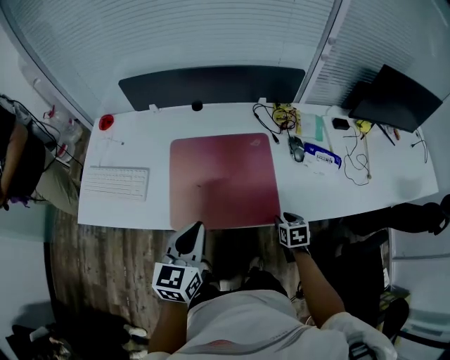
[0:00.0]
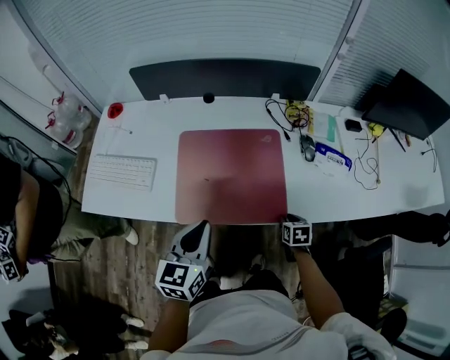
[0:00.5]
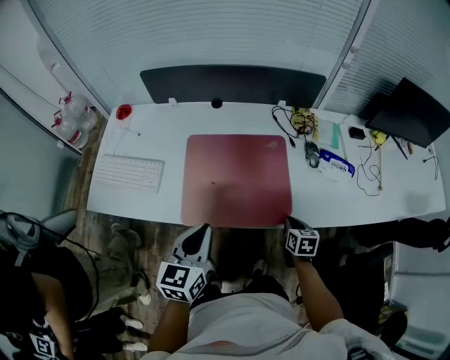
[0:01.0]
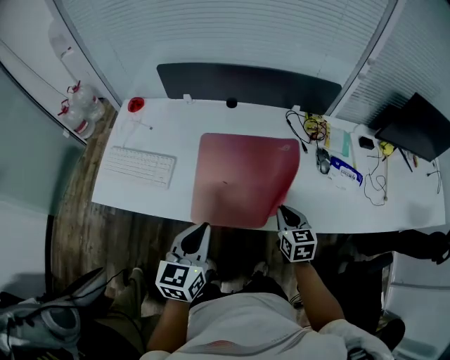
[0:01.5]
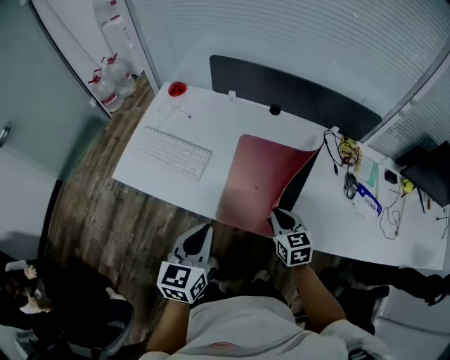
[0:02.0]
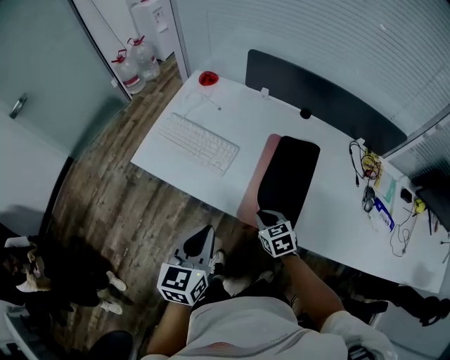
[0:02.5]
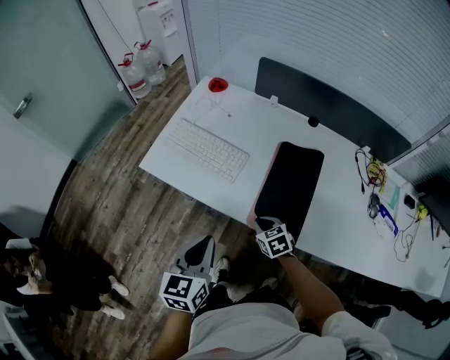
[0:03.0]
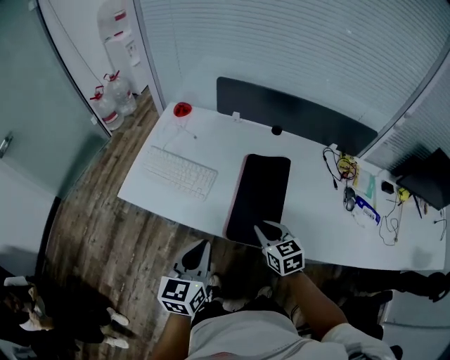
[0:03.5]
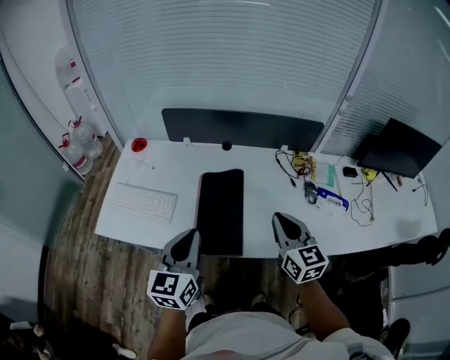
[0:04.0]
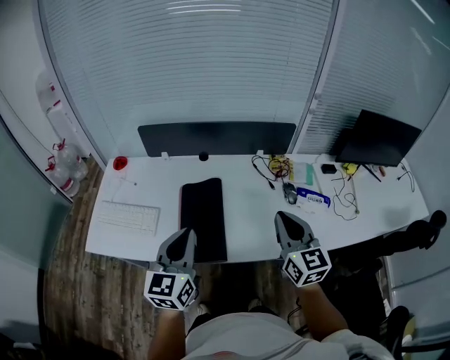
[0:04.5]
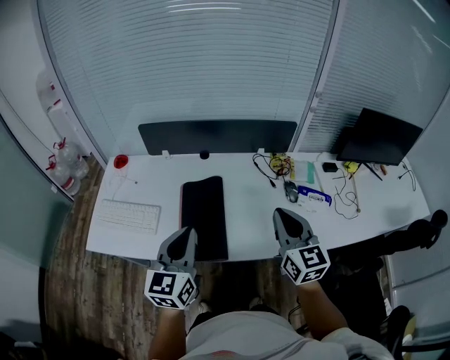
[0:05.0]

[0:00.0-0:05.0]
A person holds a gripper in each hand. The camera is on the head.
0:00.0 to 0:02.5: The right gripper reaches roughly 10 cm upward, then returns, turns by approximately 50 degrees, and closes, while the left gripper ends up roughly 20 cm from where it was, and rotates roughly 30 degrees.
0:02.5 to 0:05.0: The right gripper shifts approximately 30 cm upward, and points its fingers about 40 degrees further upward, while the left gripper moves about 20 cm, and turns by some 30 degrees.

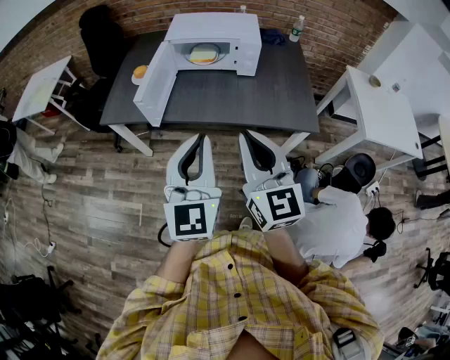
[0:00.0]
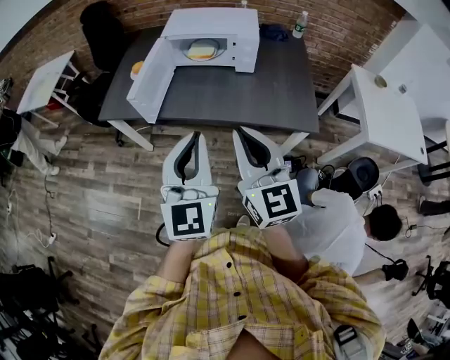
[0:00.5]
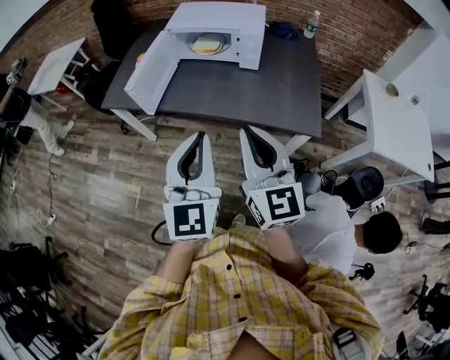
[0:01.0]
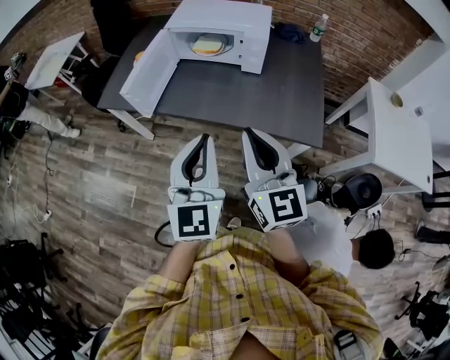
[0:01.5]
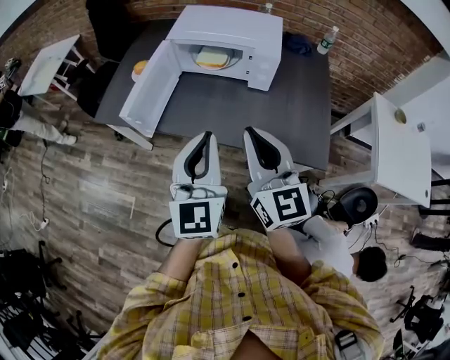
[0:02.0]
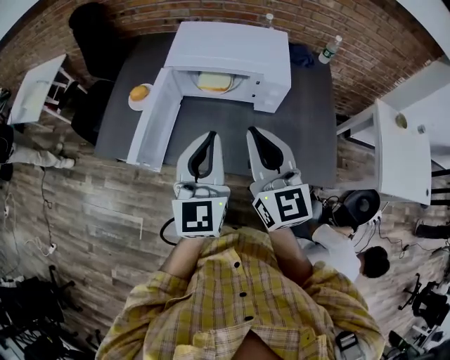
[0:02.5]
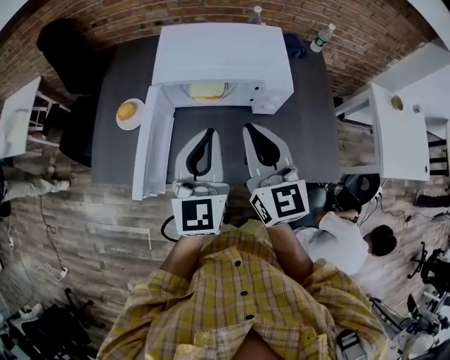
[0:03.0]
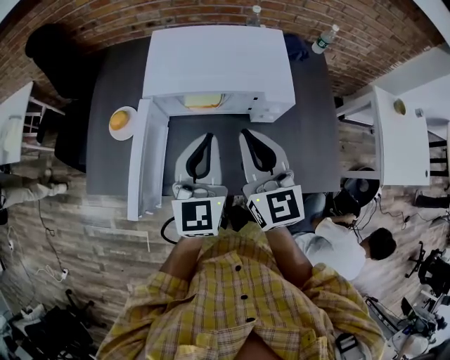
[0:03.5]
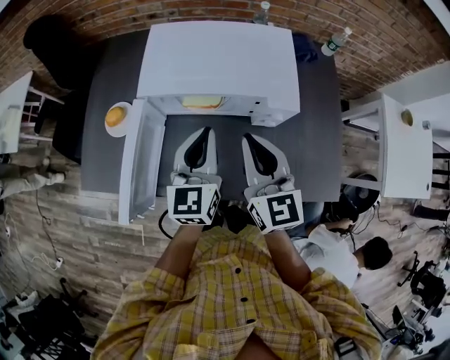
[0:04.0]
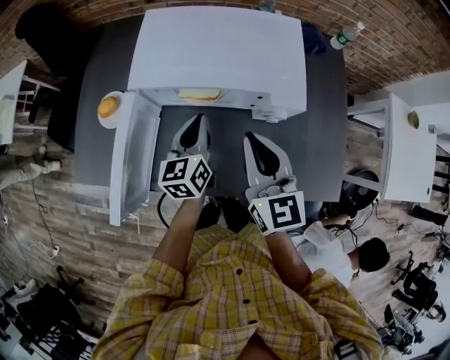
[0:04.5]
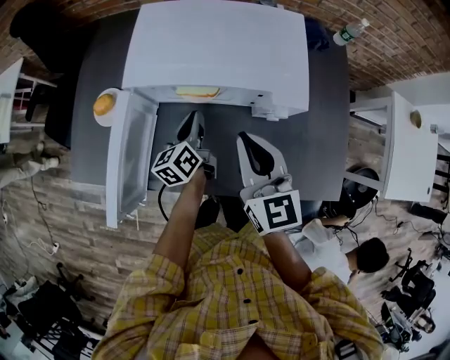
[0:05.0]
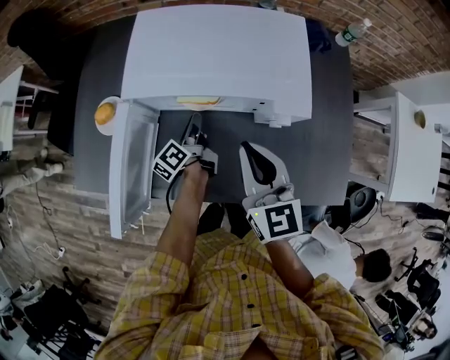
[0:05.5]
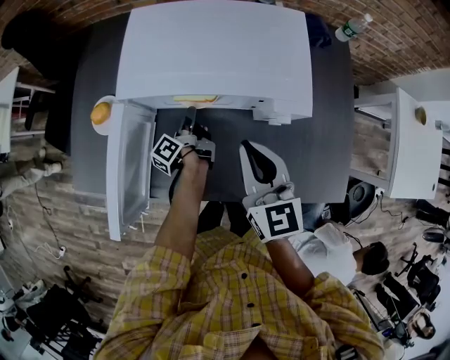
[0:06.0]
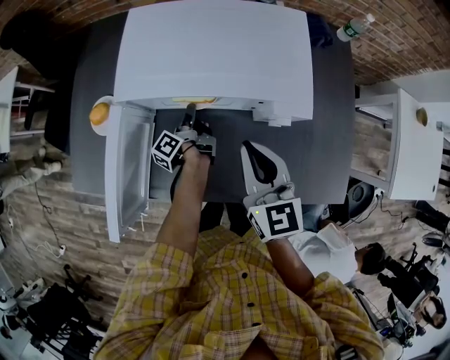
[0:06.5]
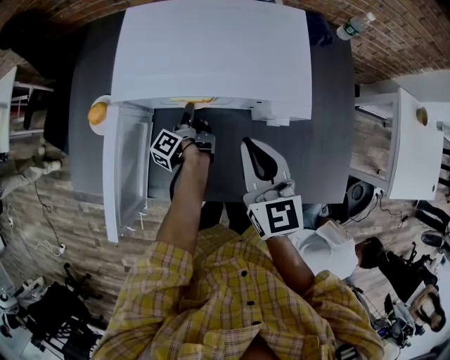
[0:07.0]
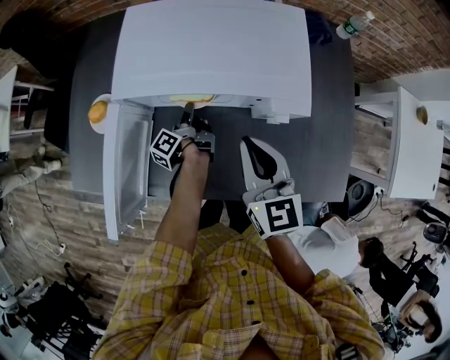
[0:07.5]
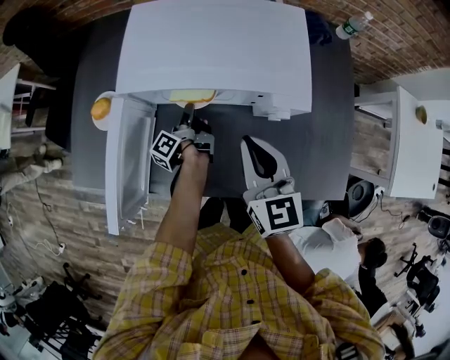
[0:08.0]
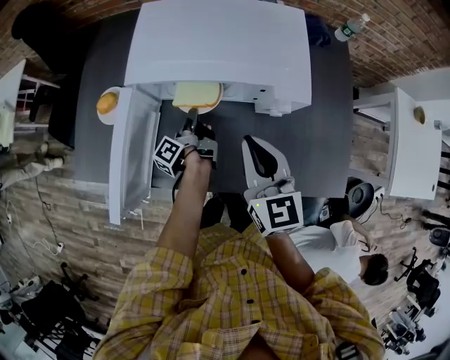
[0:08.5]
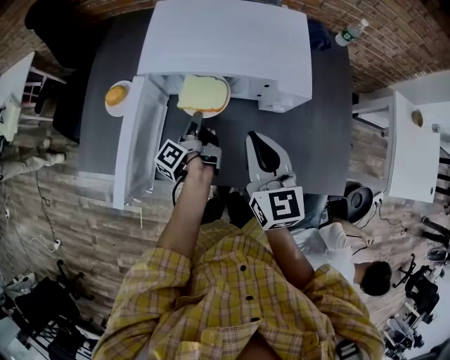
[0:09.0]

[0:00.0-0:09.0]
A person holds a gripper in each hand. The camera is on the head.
0:00.0 to 0:02.0: Both grippers travel together forward and to the right, about 20 cm.
0:02.0 to 0:04.5: The right gripper heads forward, covering about 30 cm. Meanwhile the left gripper shifts roughly 40 cm forward and downward, and swivels roughly 30 degrees.
0:04.5 to 0:07.0: The left gripper travels downward and forward by approximately 20 cm, and twists approximately 70 degrees counterclockwise, seen from behind, while the right gripper moves about 5 cm.
0:07.0 to 0:09.0: The left gripper moves backward and upward, approximately 10 cm; the right gripper travels backward by roughly 5 cm.

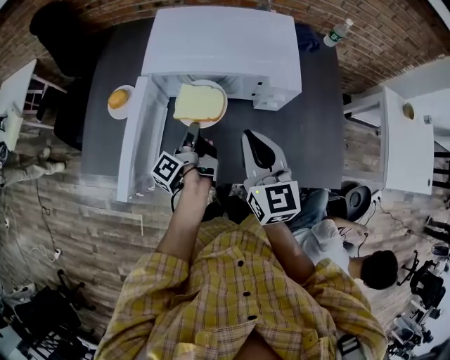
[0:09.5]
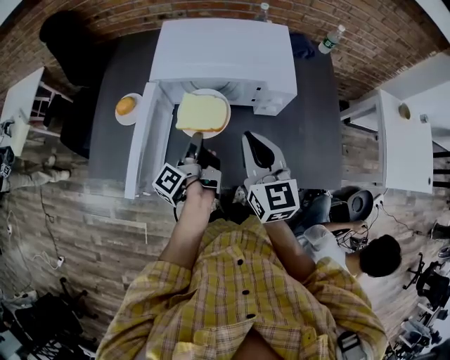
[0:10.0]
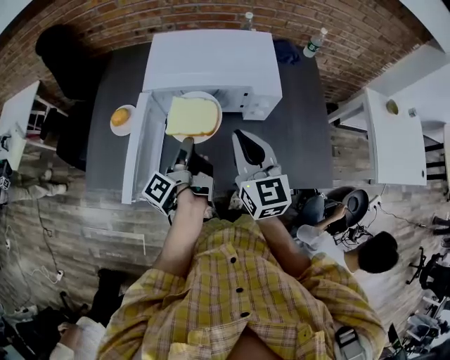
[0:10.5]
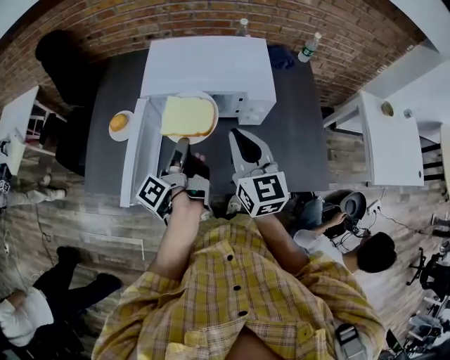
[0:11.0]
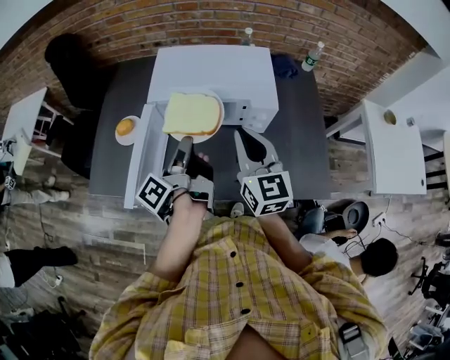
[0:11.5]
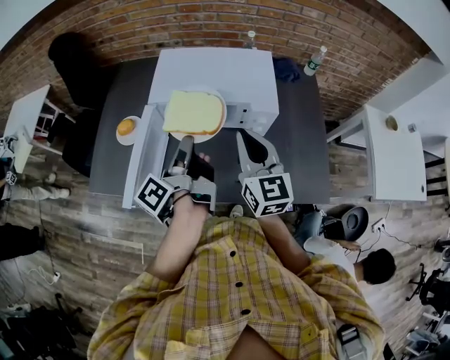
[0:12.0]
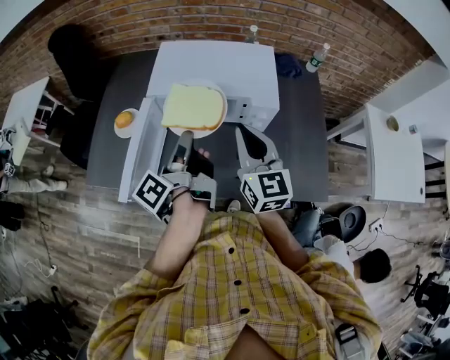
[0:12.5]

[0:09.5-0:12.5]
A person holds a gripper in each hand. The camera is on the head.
0:09.5 to 0:11.0: The right gripper travels upward by roughly 5 cm, while the left gripper is displaced upward by some 15 cm.
0:11.0 to 0:12.5: The left gripper shifts approximately 5 cm upward.

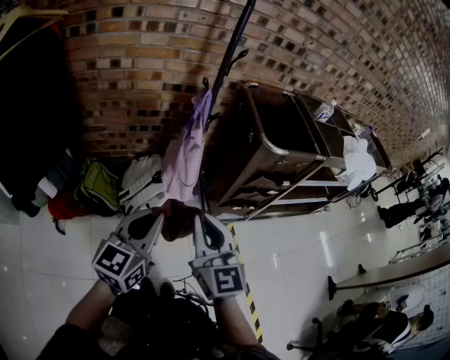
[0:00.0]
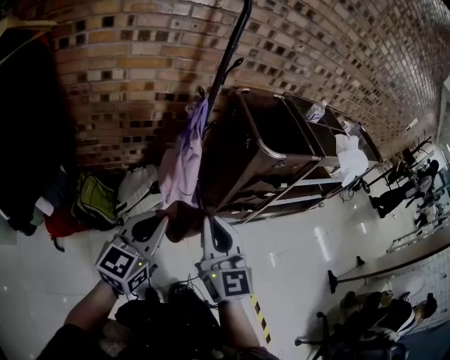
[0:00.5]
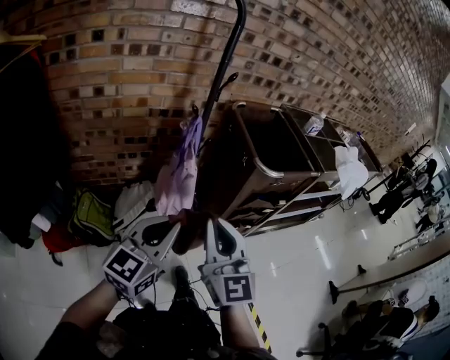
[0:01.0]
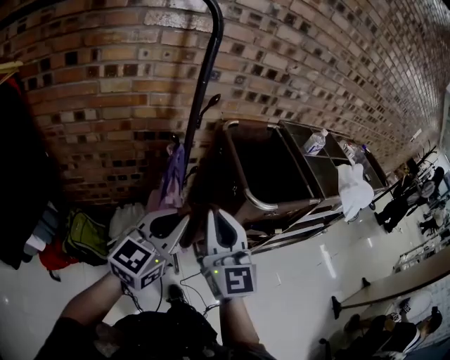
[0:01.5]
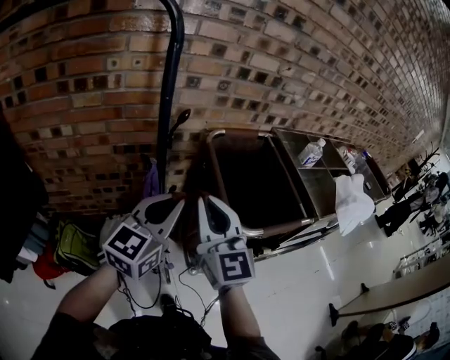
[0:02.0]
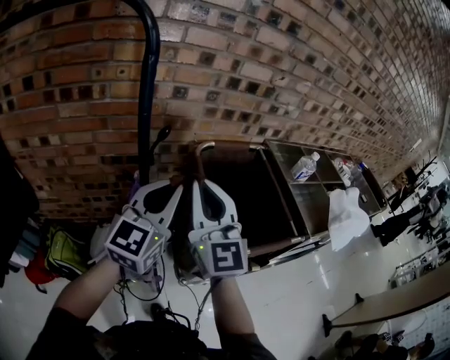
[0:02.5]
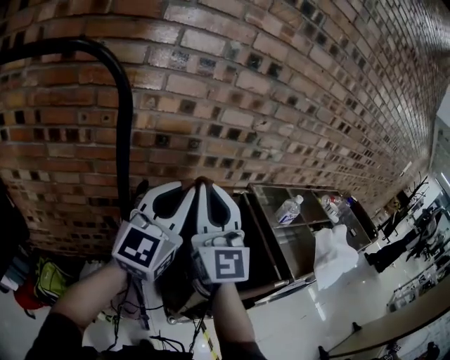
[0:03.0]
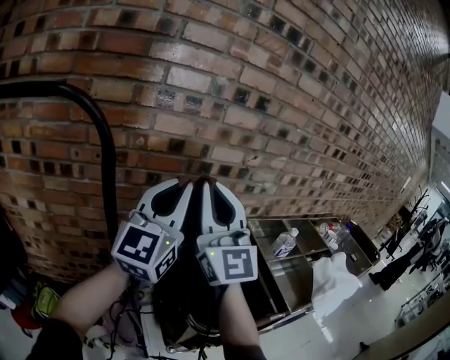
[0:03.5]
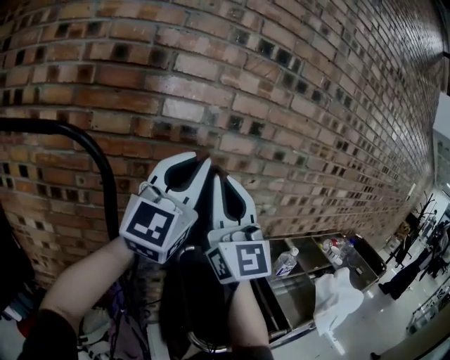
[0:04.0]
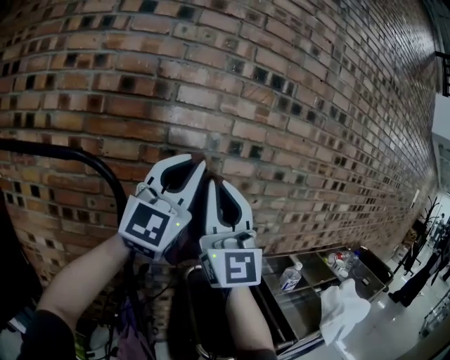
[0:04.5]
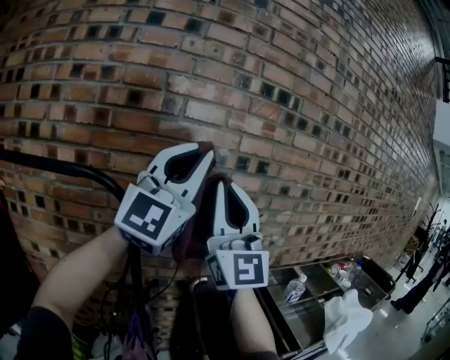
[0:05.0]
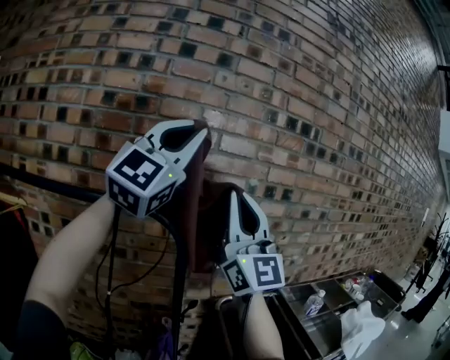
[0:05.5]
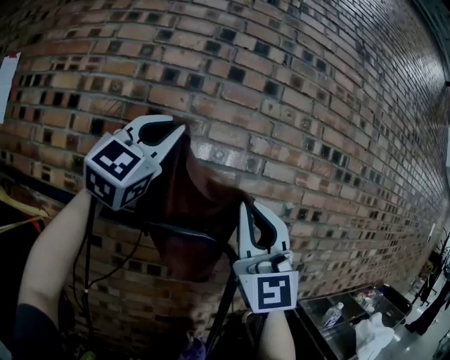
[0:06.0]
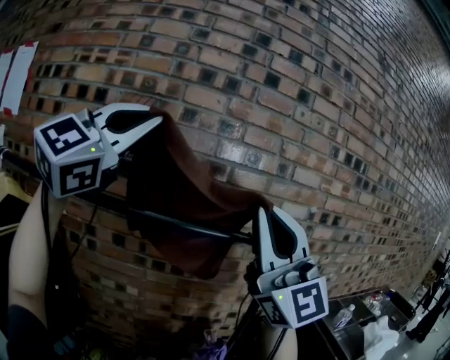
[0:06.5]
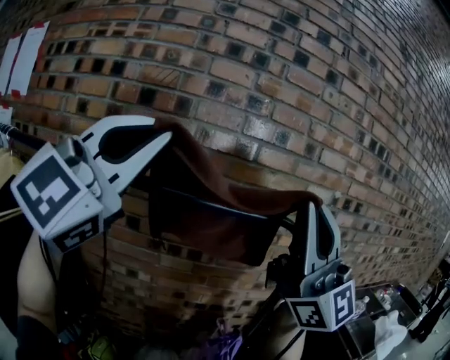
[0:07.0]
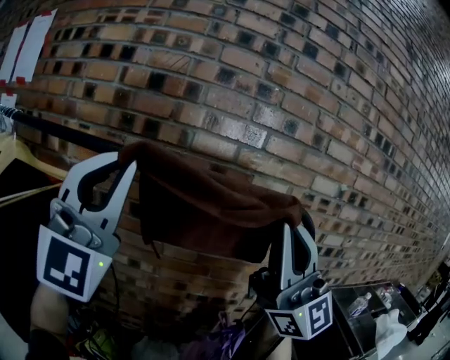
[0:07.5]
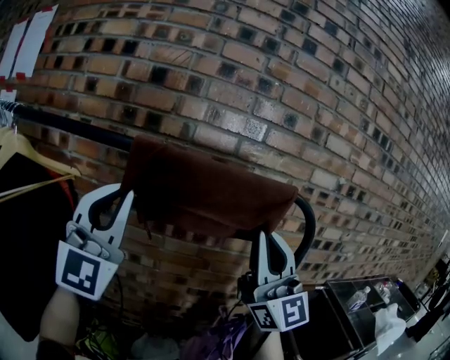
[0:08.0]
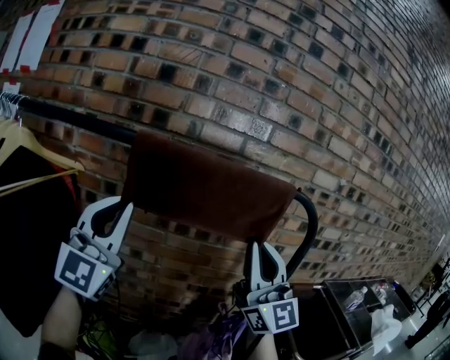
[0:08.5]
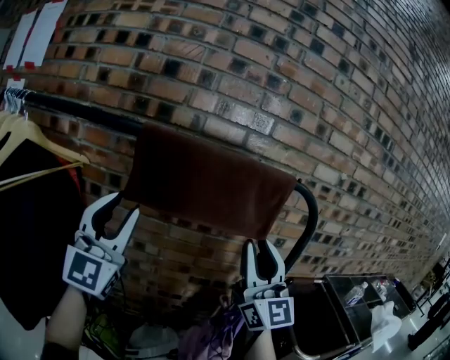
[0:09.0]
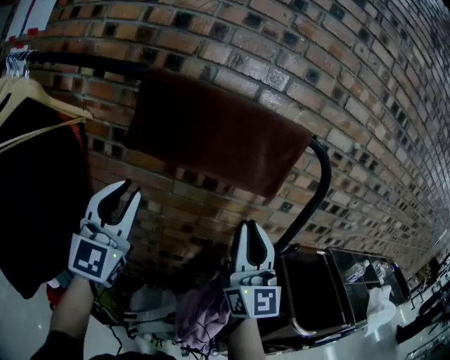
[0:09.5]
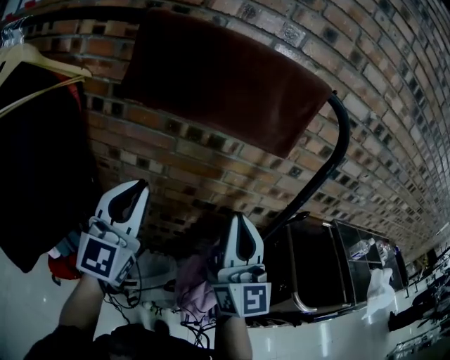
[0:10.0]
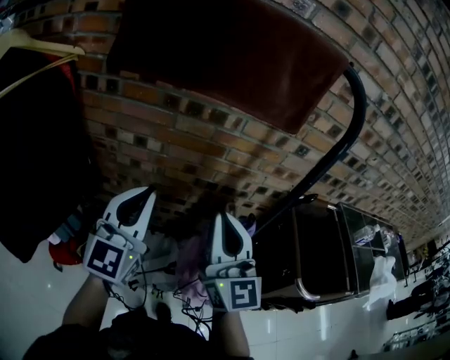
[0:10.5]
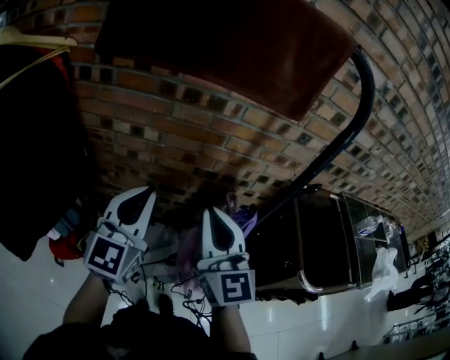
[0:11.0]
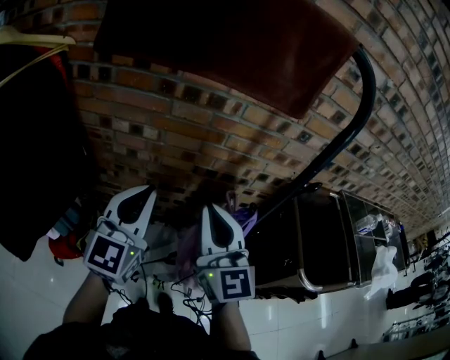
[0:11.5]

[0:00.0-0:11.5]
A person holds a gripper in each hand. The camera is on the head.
0:00.0 to 0:02.0: The two grippers go approximately 35 cm forward.
0:02.0 to 0:04.0: Both grippers travel together upward and forward, some 40 cm. The left gripper tips its fingers upward by roughly 30 degrees. The right gripper angles its fingers upward, by about 30 degrees.
0:04.0 to 0:06.0: The grippers both shift to the left and upward by approximately 35 cm. The right gripper swivels approximately 20 degrees. The left gripper turns by approximately 20 degrees.
0:06.0 to 0:07.5: The left gripper goes roughly 25 cm to the left, downward and backward. Meanwhile the right gripper travels downward and to the left by approximately 15 cm, and turns by some 30 degrees.
0:07.5 to 0:09.5: The two grippers go approximately 20 cm downward. The right gripper rotates about 20 degrees. Meanwhile the left gripper swivels roughly 30 degrees.
0:09.5 to 0:11.5: The left gripper shifts roughly 20 cm downward and to the right, swivels roughly 20 degrees, and closes. Meanwhile the right gripper moves downward, some 15 cm, and turns by about 30 degrees.
